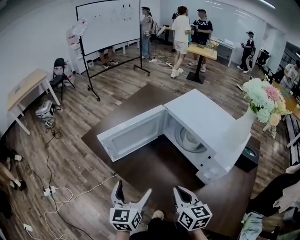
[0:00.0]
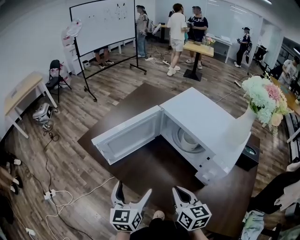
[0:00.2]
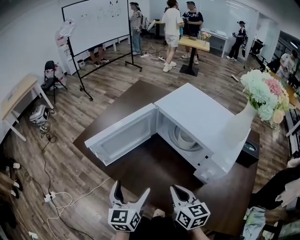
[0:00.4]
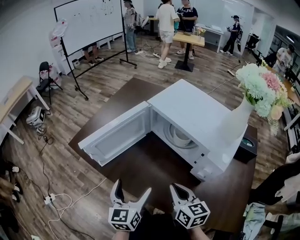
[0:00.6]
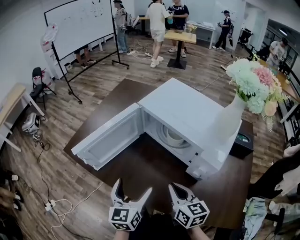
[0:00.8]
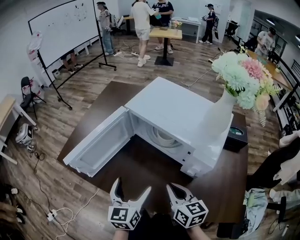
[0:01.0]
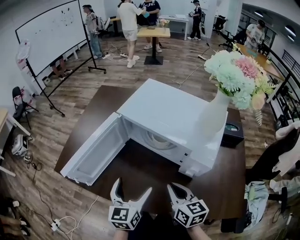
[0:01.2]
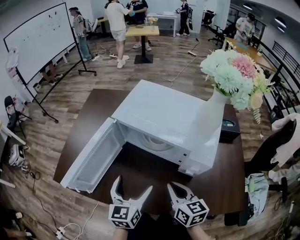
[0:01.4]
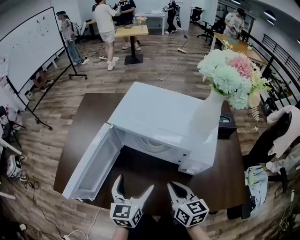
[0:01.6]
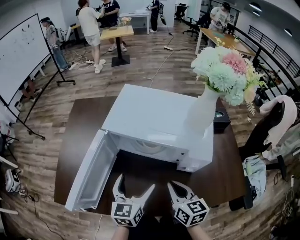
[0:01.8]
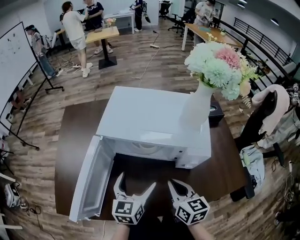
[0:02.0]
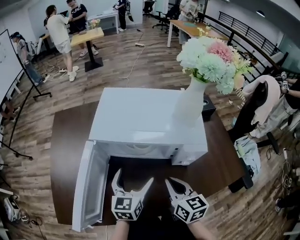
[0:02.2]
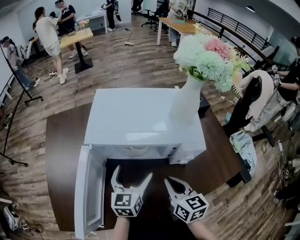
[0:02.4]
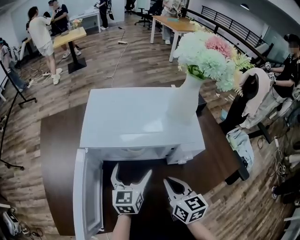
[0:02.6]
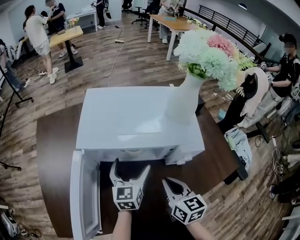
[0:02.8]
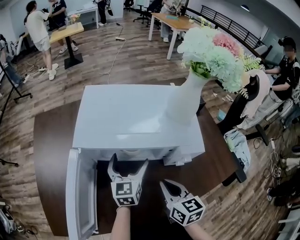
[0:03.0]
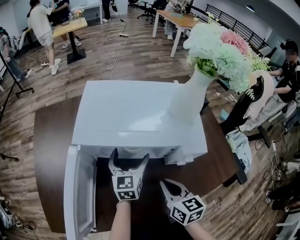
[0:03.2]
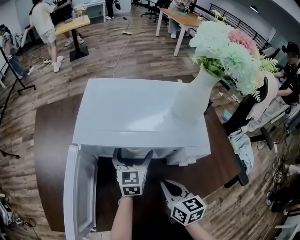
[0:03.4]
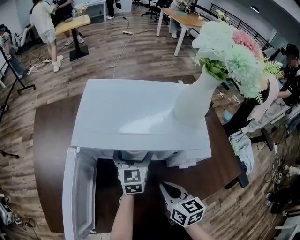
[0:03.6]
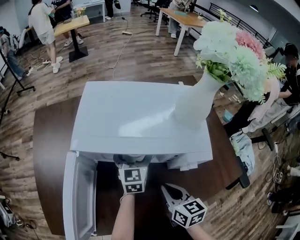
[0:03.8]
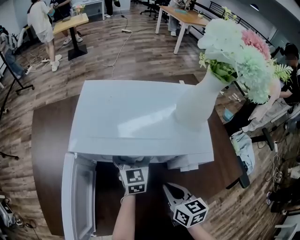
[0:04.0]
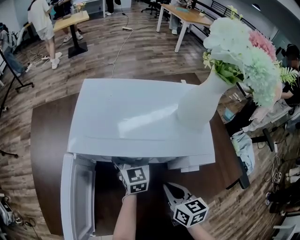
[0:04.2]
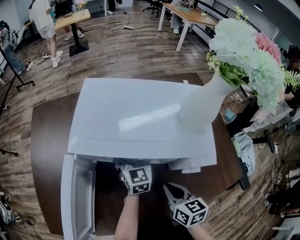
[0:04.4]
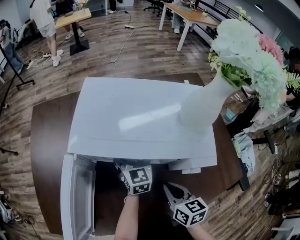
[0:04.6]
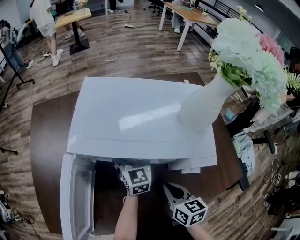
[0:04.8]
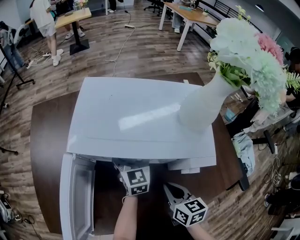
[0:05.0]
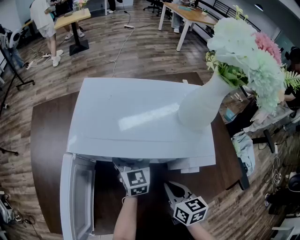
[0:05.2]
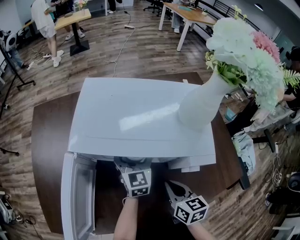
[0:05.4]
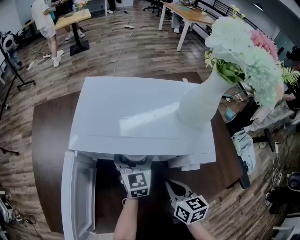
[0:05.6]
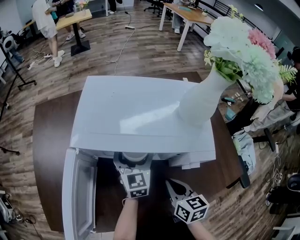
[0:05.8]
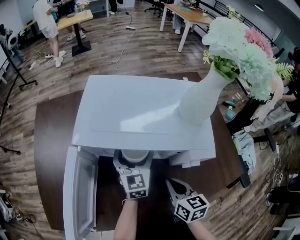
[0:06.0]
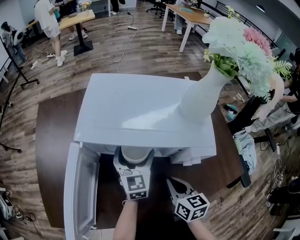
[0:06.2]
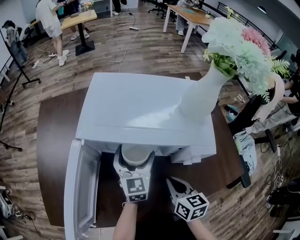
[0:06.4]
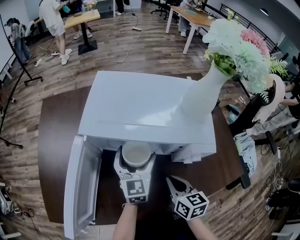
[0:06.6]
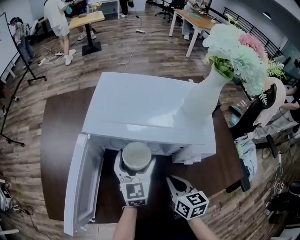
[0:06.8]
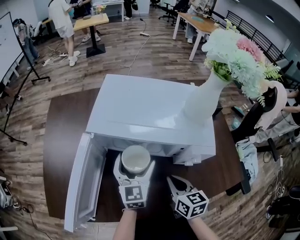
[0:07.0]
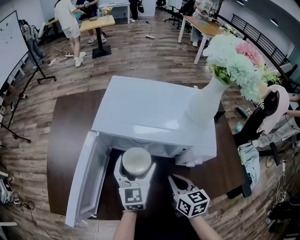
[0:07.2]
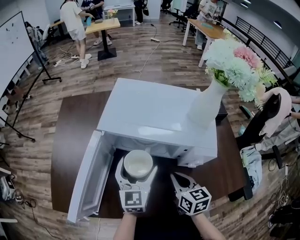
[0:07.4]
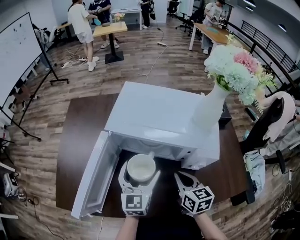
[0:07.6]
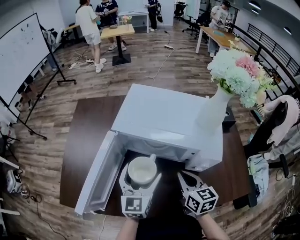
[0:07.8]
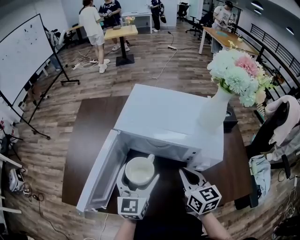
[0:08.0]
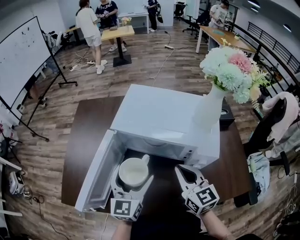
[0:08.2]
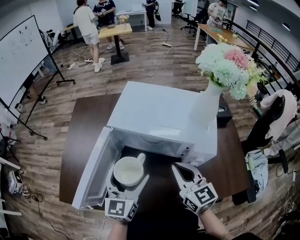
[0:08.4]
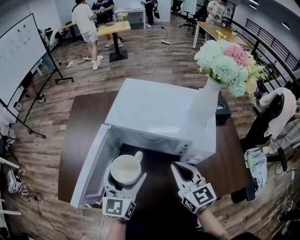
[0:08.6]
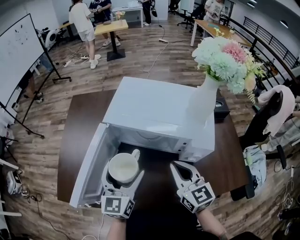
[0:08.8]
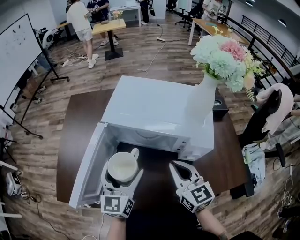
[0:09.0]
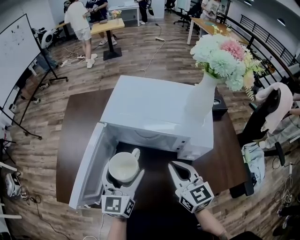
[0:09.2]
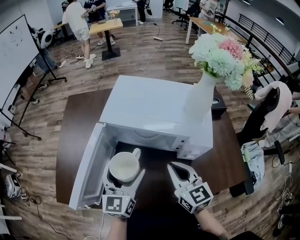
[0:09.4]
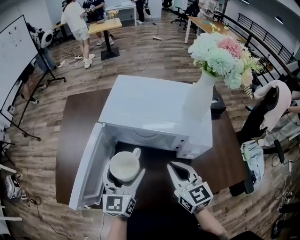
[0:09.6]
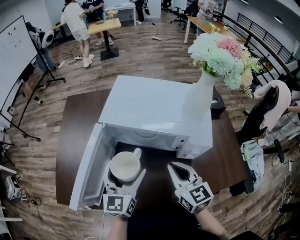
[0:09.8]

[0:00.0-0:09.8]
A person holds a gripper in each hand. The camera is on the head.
0.0 to 1.4 s: The left gripper is displaced forward and to the right by approximately 15 cm, and changes its angle by roughly 30 degrees. Meanwhile the right gripper travels to the right and forward by some 10 cm, and changes its angle by roughly 20 degrees.
1.4 to 2.8 s: The right gripper changes its angle by about 30 degrees, while the left gripper ends up roughly 15 cm from where it was, and rotates roughly 30 degrees.
2.8 to 4.2 s: The left gripper travels forward by approximately 10 cm, while the right gripper is displaced downward by approximately 5 cm.
4.2 to 5.6 s: The grippers move only a little.
5.6 to 7.0 s: The left gripper goes approximately 10 cm backward.
7.0 to 8.4 s: The right gripper shifts about 10 cm upward, and turns by some 30 degrees, while the left gripper moves upward, backward and to the left, about 15 cm.
8.4 to 9.8 s: The grippers make only small movements.

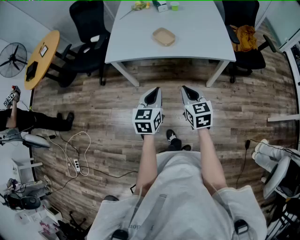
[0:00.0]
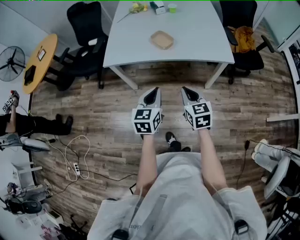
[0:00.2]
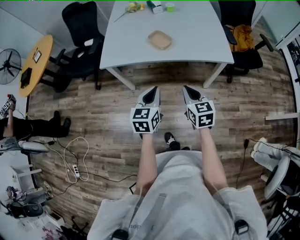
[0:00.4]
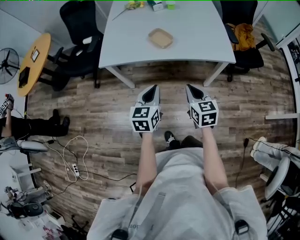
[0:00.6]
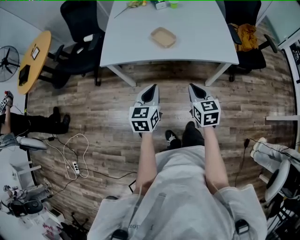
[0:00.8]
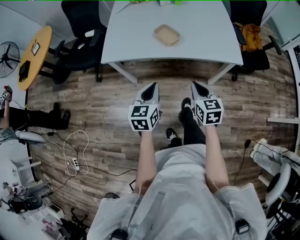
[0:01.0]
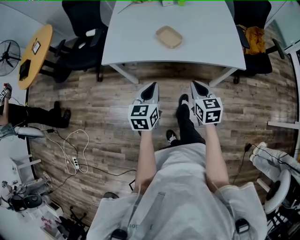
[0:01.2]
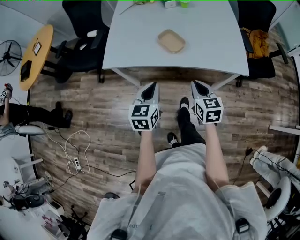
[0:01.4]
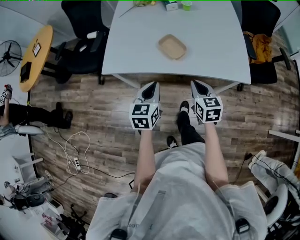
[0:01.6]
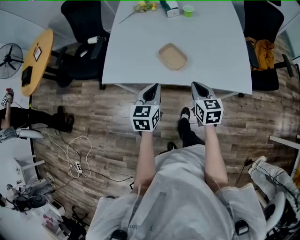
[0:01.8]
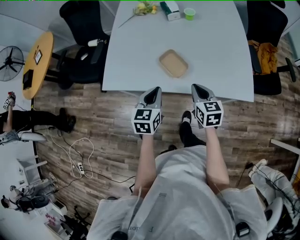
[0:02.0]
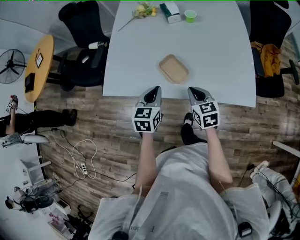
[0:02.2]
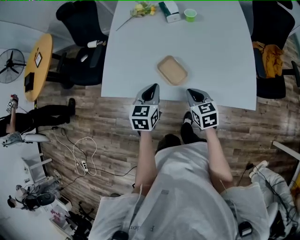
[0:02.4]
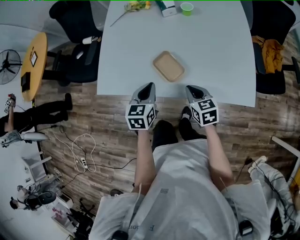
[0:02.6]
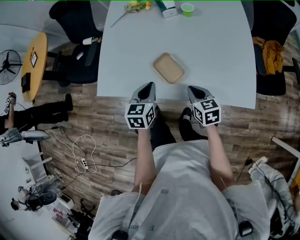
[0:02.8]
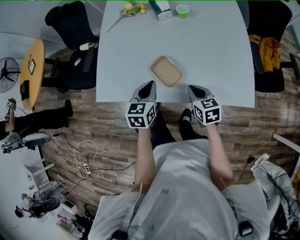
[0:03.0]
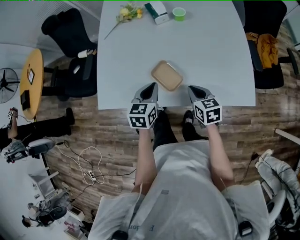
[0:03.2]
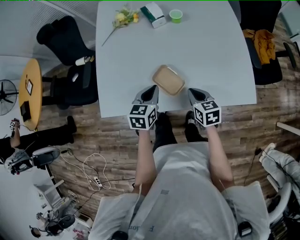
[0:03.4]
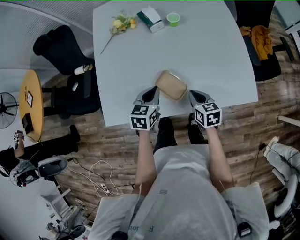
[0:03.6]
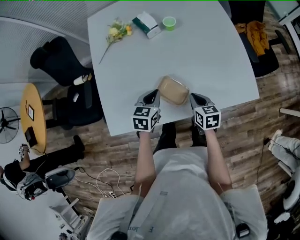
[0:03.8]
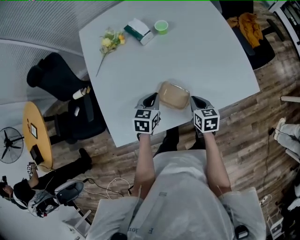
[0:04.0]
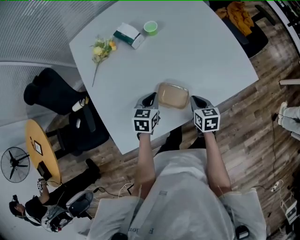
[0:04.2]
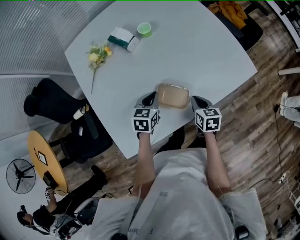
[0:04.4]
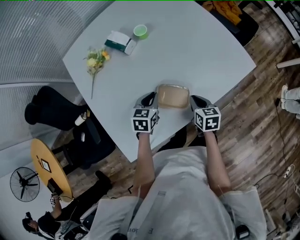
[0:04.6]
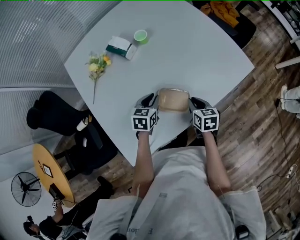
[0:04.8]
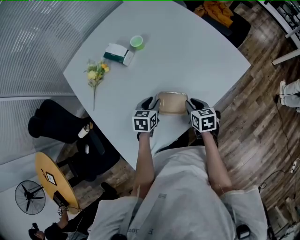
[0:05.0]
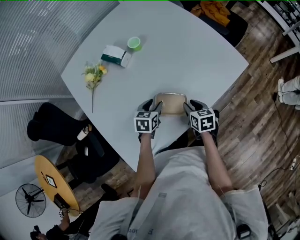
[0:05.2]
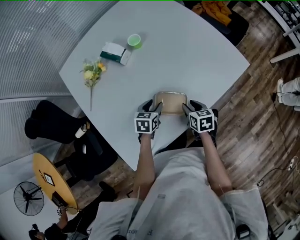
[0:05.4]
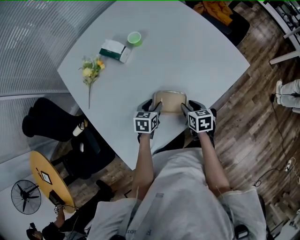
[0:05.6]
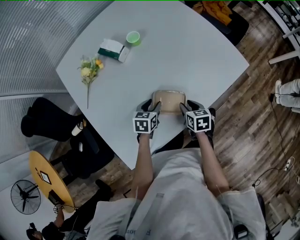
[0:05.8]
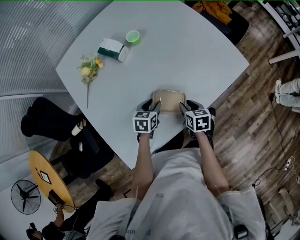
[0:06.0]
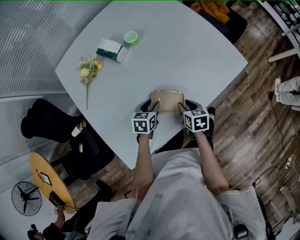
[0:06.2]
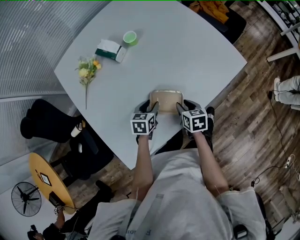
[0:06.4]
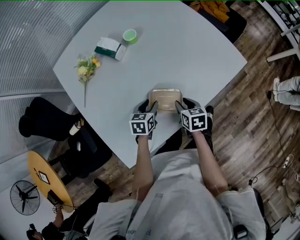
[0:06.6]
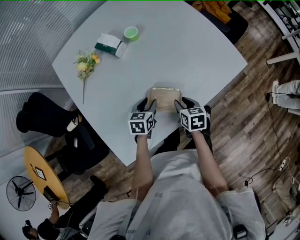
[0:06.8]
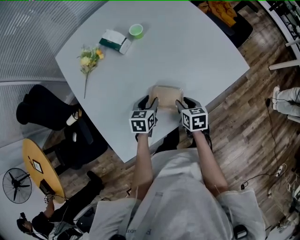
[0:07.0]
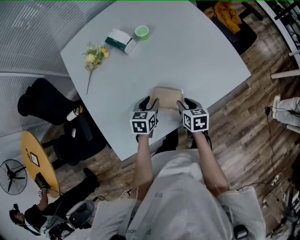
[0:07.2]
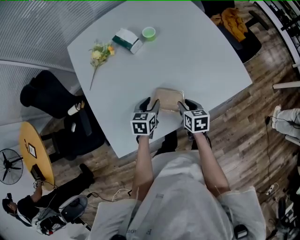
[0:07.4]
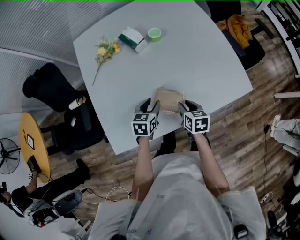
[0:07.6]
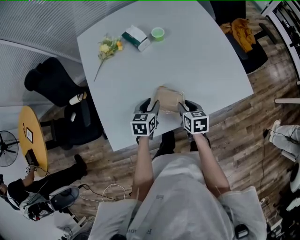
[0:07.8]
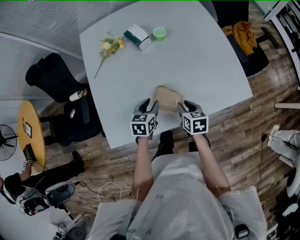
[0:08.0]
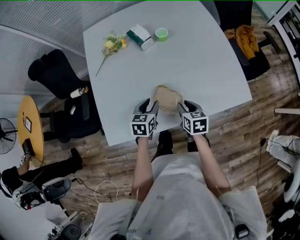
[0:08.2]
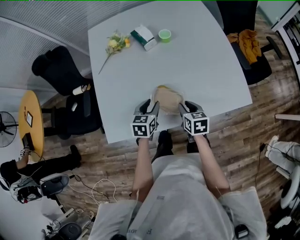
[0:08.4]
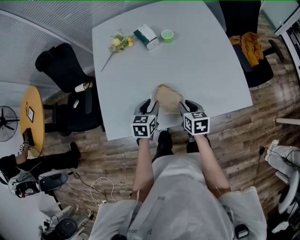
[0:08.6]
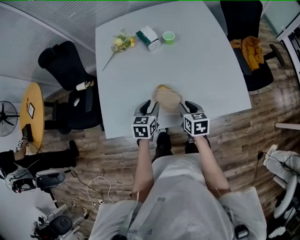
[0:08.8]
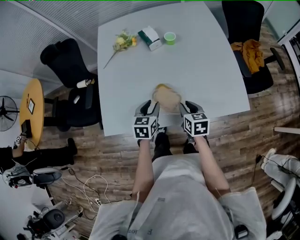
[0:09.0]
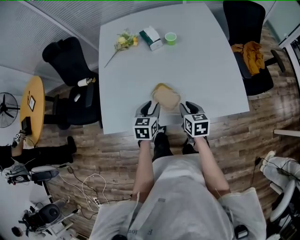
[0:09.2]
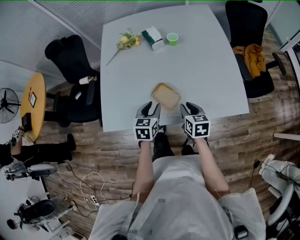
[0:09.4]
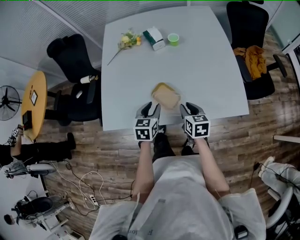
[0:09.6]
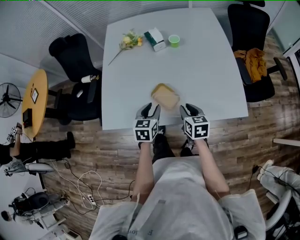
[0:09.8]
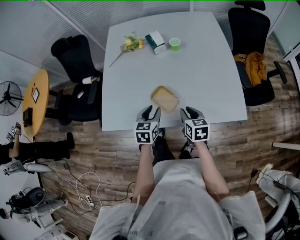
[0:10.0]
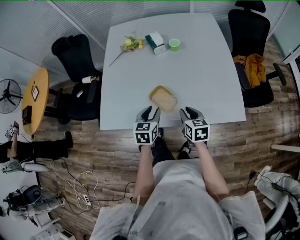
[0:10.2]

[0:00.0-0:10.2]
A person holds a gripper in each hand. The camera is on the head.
0.0 to 1.4 s: Both grippers move forward, roughly 15 cm.
1.4 to 3.0 s: Both grippers move forward, approximately 25 cm.
3.0 to 4.4 s: The right gripper goes about 5 cm downward, and rotates some 50 degrees, while the left gripper moves some 15 cm, and turns by some 40 degrees.
4.4 to 5.8 s: The left gripper travels downward by about 5 cm, and opens. The right gripper opens up.
5.8 to 7.2 s: The grippers stay close to where they were, moving slightly.
7.2 to 8.8 s: The left gripper moves upward and backward, roughly 10 cm, and changes its angle by some 20 degrees. Meanwhile the right gripper shifts roughly 5 cm upward, and rotates some 20 degrees.
8.8 to 10.2 s: The left gripper moves backward, roughly 5 cm, while the right gripper shifts by about 5 cm.

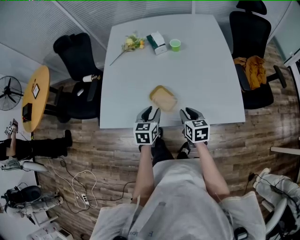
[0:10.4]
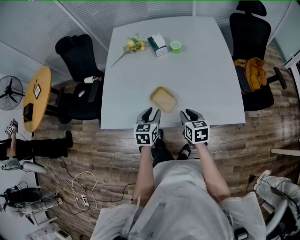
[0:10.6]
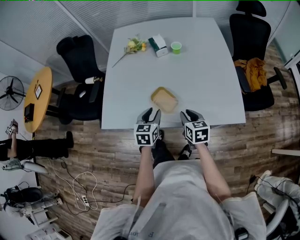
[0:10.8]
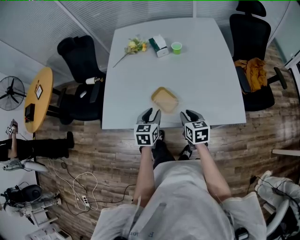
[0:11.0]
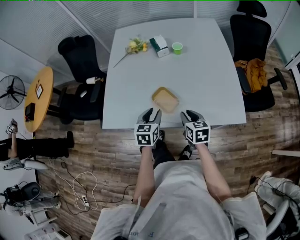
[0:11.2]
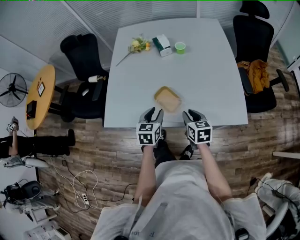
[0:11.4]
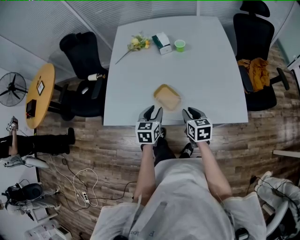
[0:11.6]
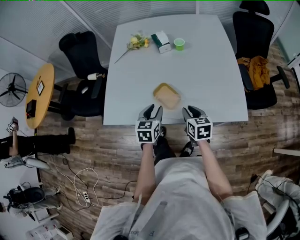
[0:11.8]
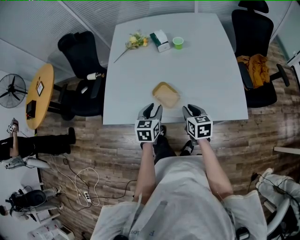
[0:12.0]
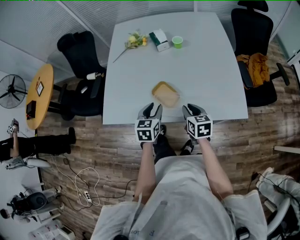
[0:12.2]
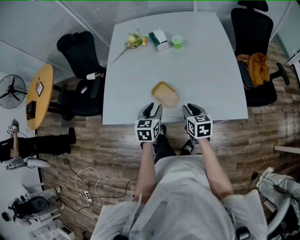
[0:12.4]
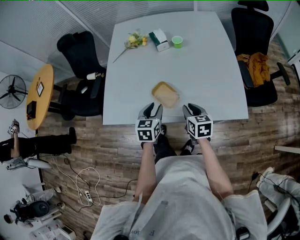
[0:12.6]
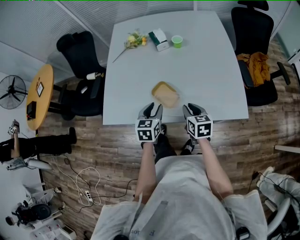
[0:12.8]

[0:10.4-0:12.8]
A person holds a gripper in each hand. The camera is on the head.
10.4 to 12.8 s: Both grippers stay put.

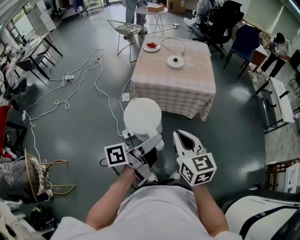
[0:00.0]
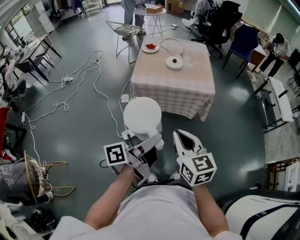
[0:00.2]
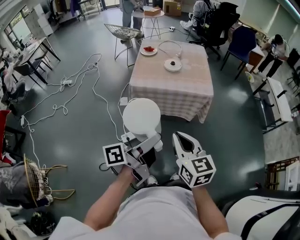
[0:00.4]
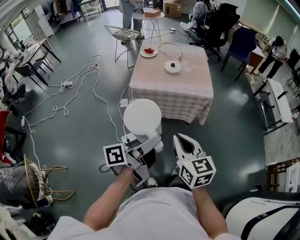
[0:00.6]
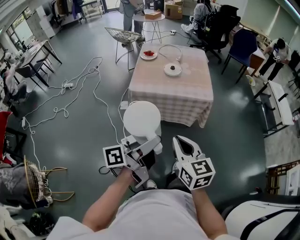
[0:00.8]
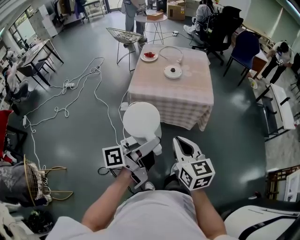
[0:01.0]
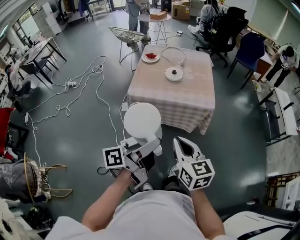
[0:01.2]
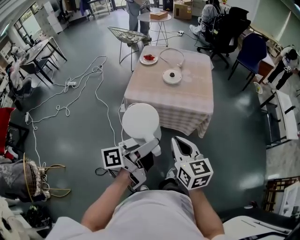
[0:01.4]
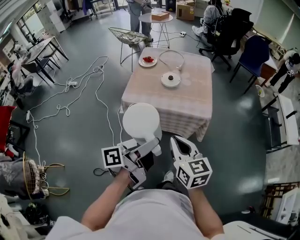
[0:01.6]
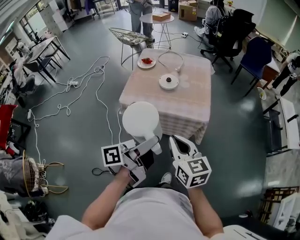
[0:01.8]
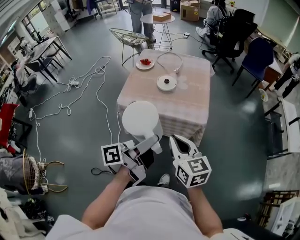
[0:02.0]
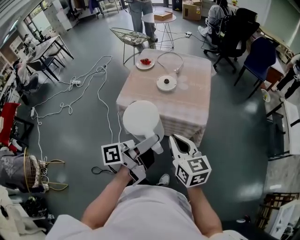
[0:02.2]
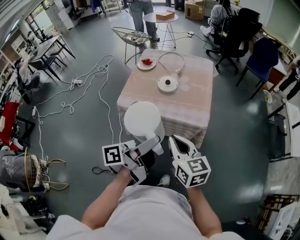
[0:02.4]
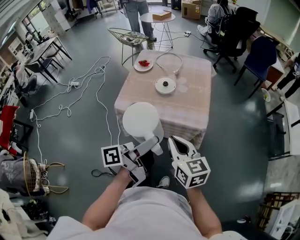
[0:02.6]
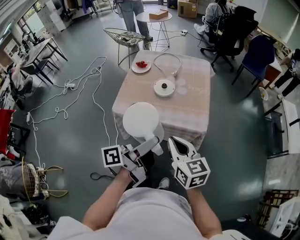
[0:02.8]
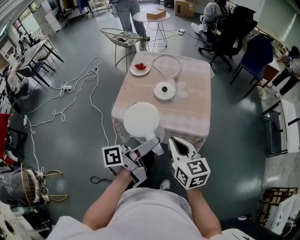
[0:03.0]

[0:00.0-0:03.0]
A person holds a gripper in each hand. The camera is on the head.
0.0 to 1.6 s: The right gripper shifts by approximately 15 cm.
1.6 to 3.0 s: The right gripper moves approximately 15 cm.
